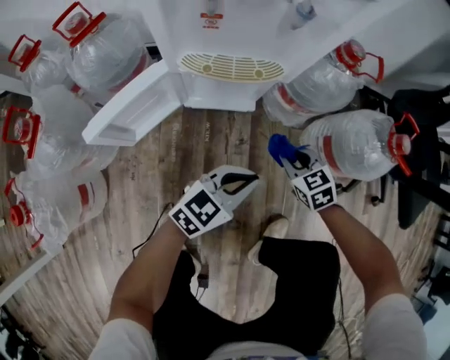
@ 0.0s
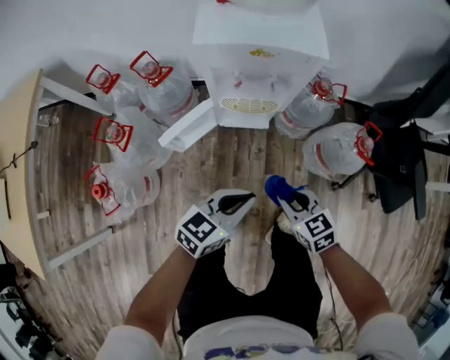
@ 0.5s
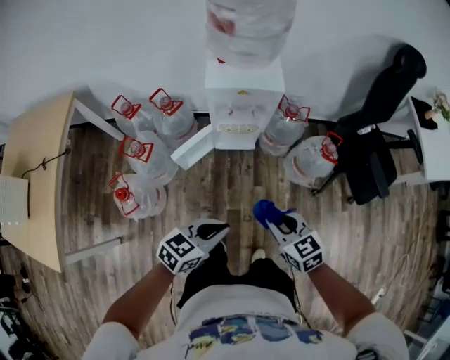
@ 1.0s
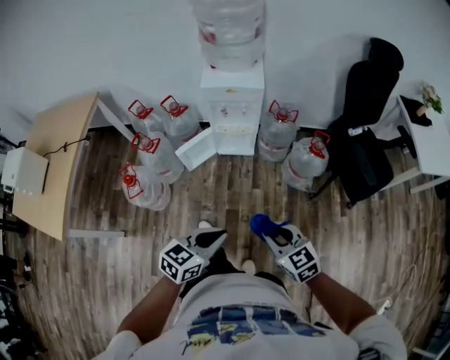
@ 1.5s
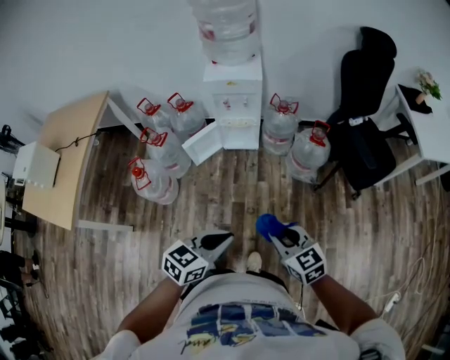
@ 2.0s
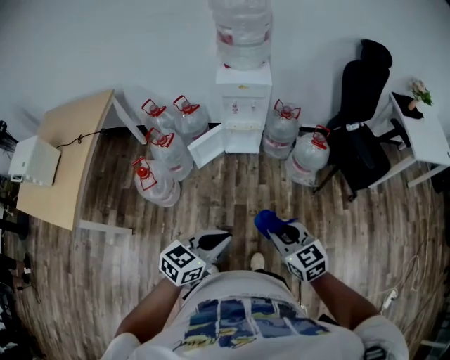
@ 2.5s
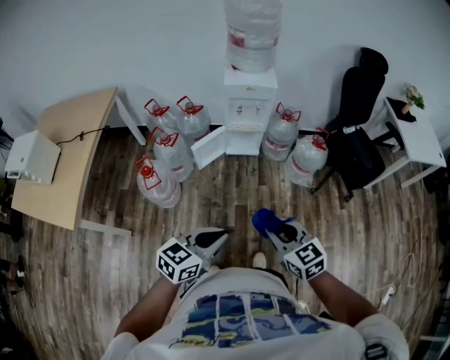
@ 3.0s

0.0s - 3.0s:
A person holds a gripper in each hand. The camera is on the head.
0.0s - 1.5s: The two grippers go some 70 cm upward and backward.
1.5s - 3.0s: The left gripper goes about 20 cm backward and to the left; the right gripper shifts roughly 20 cm backward, to the left and upward.

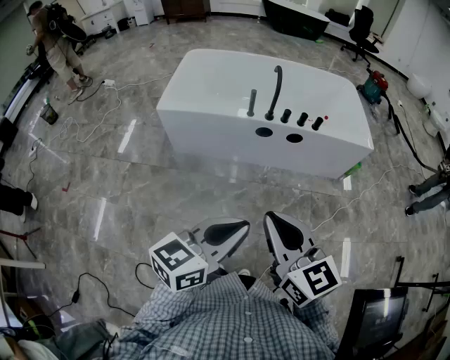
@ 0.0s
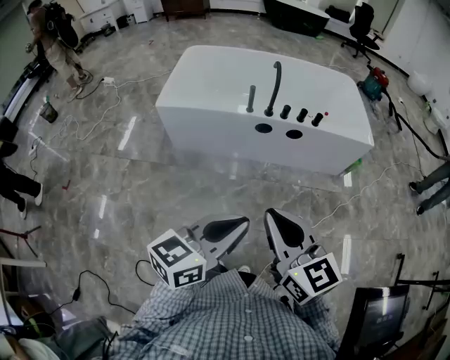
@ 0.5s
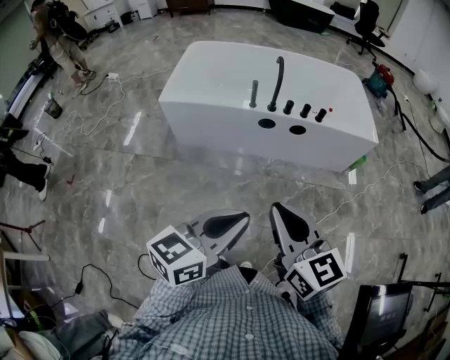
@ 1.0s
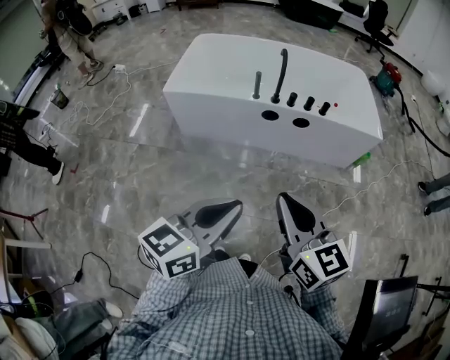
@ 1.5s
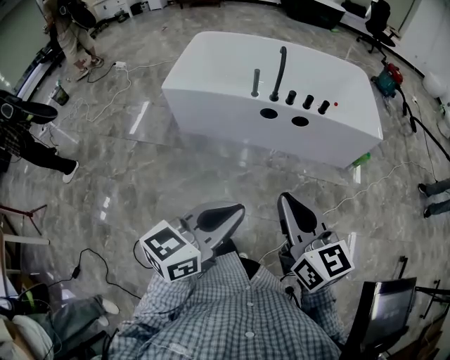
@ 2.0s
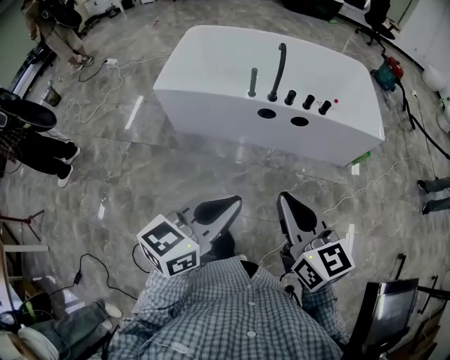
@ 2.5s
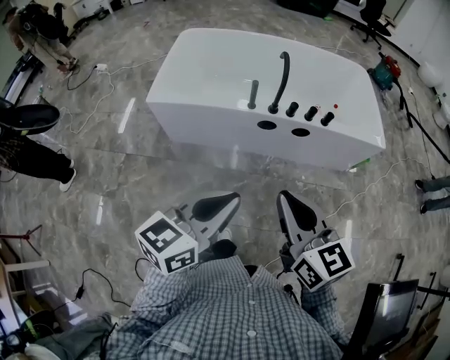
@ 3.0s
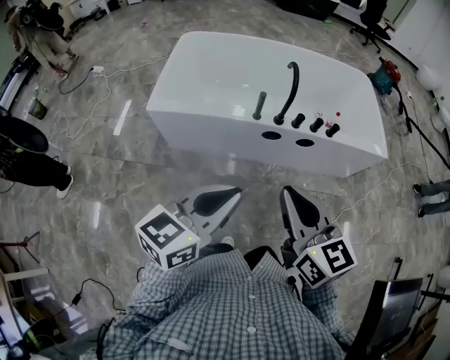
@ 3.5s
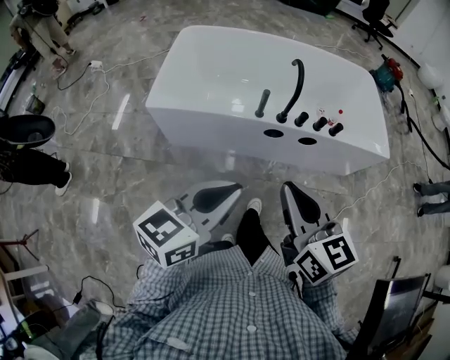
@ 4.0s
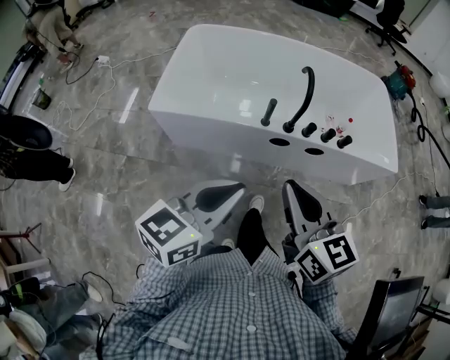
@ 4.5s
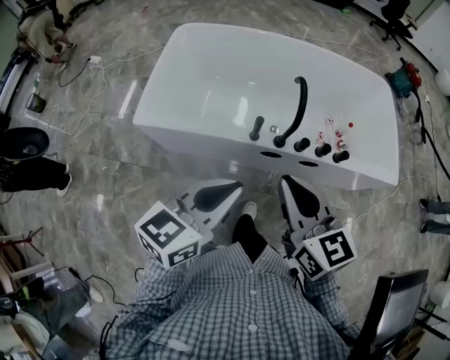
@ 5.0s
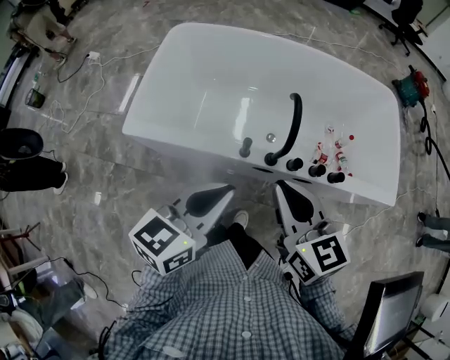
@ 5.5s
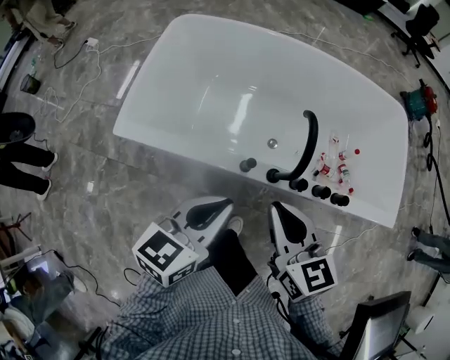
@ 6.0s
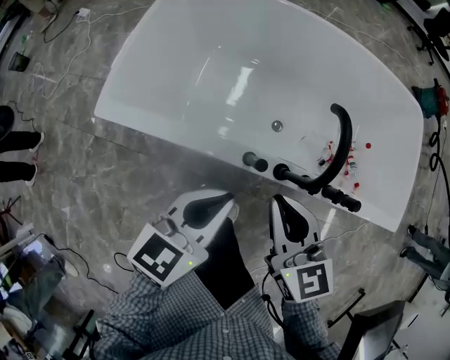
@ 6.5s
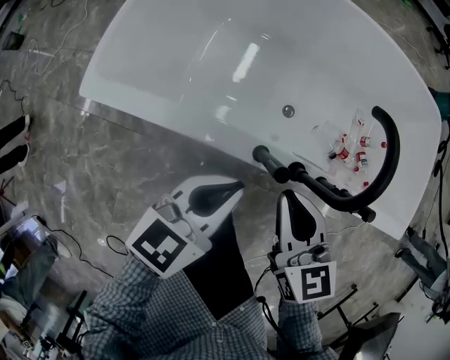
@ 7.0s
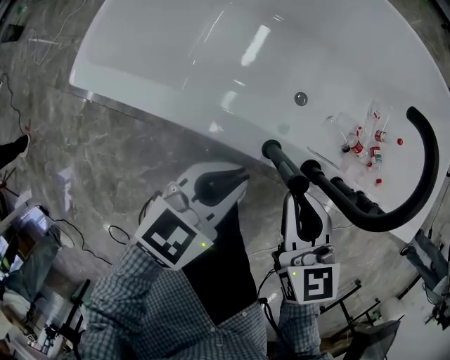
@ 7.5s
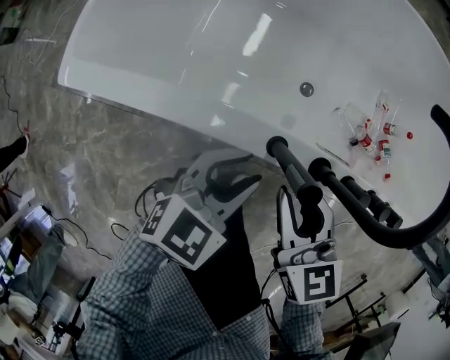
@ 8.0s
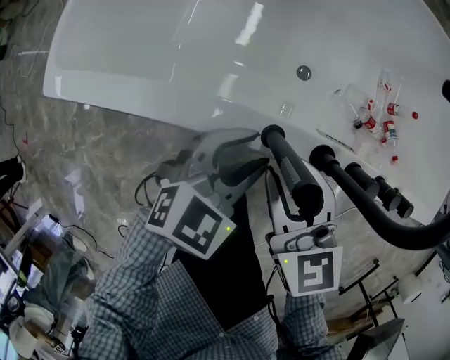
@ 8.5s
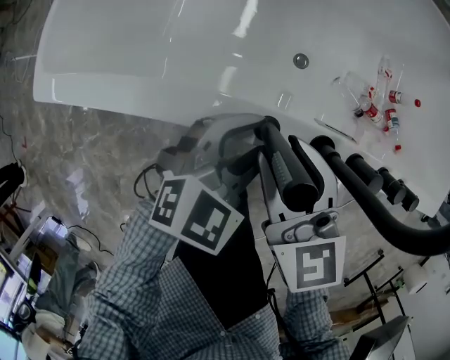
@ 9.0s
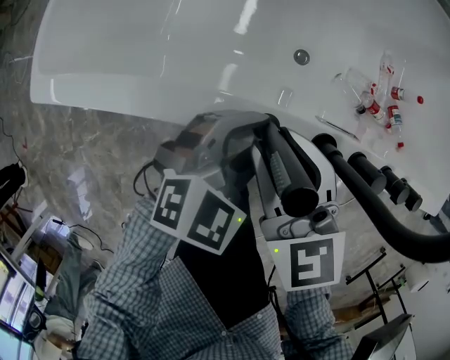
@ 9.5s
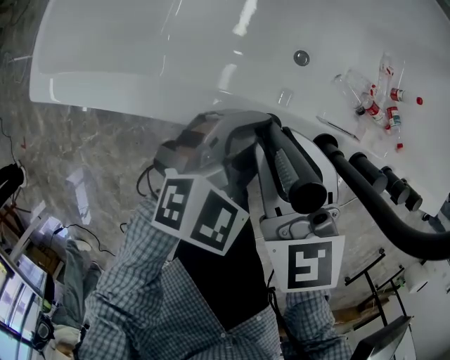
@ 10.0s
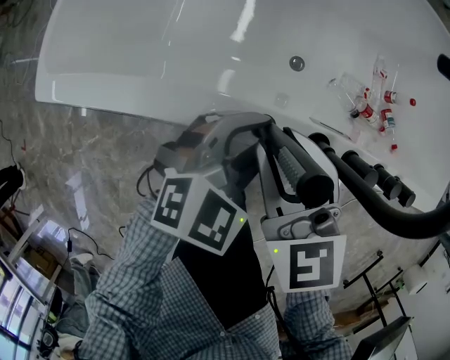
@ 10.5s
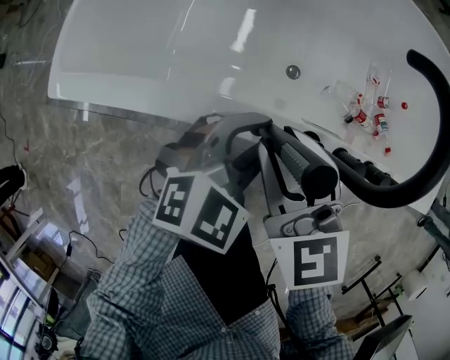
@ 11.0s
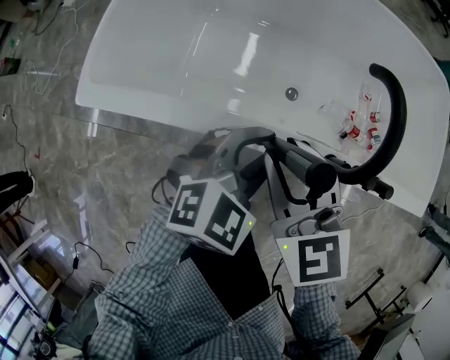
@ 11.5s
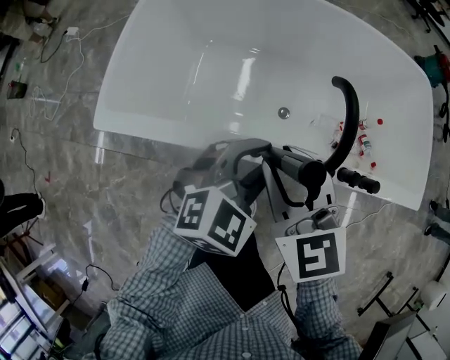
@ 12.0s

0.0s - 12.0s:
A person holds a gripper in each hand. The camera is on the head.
0.0s - 2.0s: The left gripper changes place by about 5 cm. Meanwhile the right gripper travels to the right by approximately 10 cm.
2.0s - 4.0s: The grippers both shift forward and to the left by roughly 35 cm.
4.0s - 6.0s: Both grippers travel together forward, approximately 40 cm.
6.0s - 8.0s: Both grippers move downward, some 30 cm. The left gripper rotates roughly 30 degrees, and opens.
8.0s - 10.0s: The left gripper shifts by some 10 cm. The right gripper changes place by approximately 5 cm.
10.0s - 12.0s: The grippers both shift upward by roughly 25 cm.

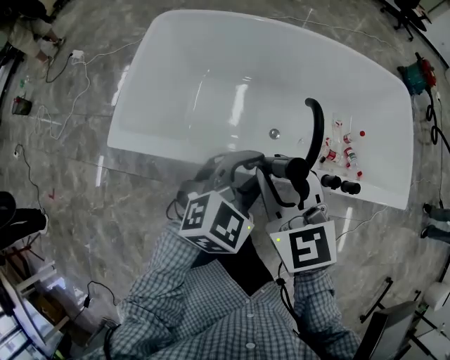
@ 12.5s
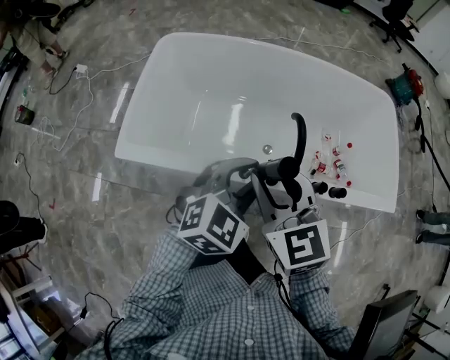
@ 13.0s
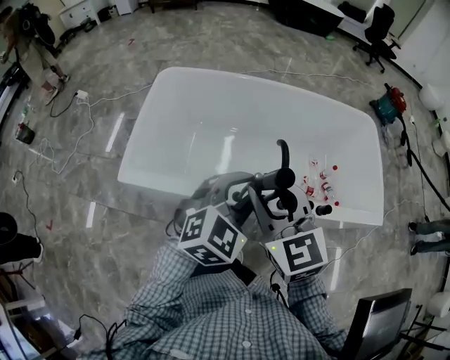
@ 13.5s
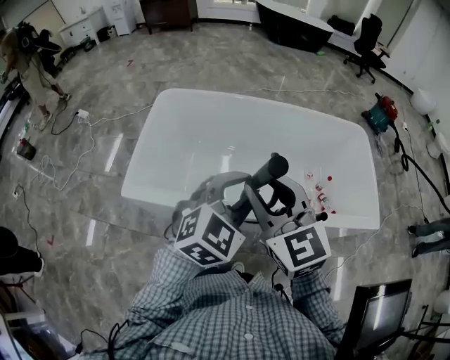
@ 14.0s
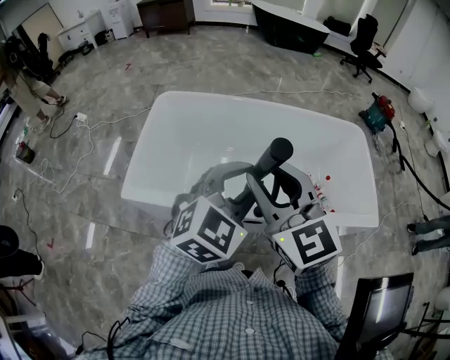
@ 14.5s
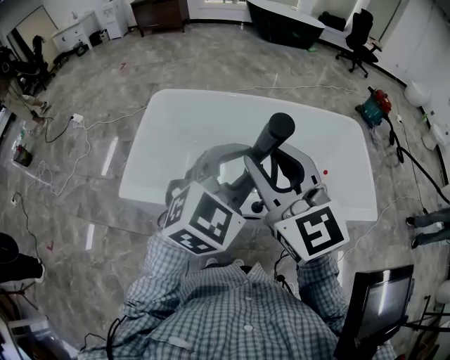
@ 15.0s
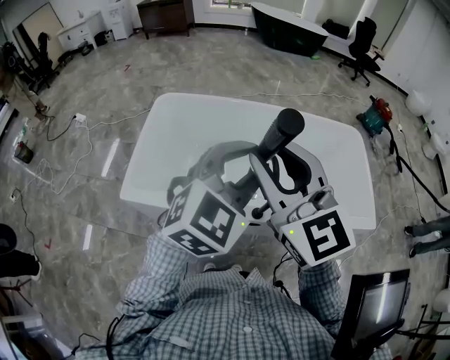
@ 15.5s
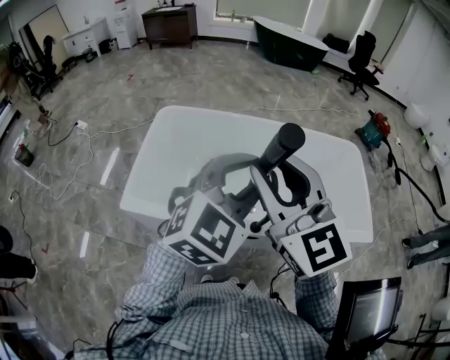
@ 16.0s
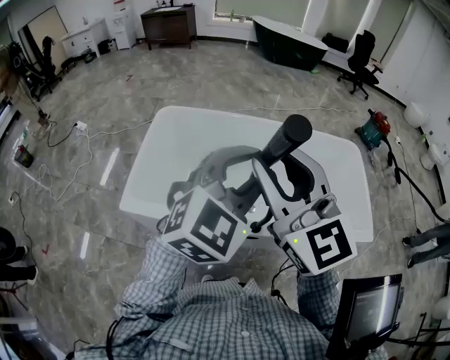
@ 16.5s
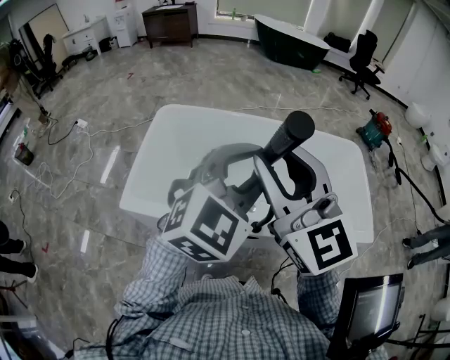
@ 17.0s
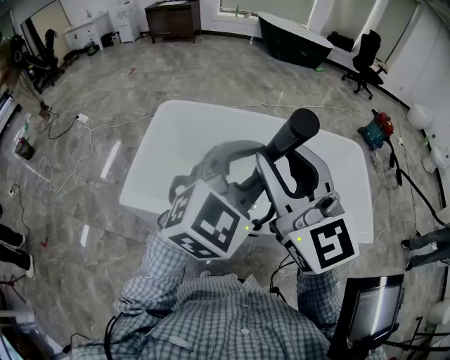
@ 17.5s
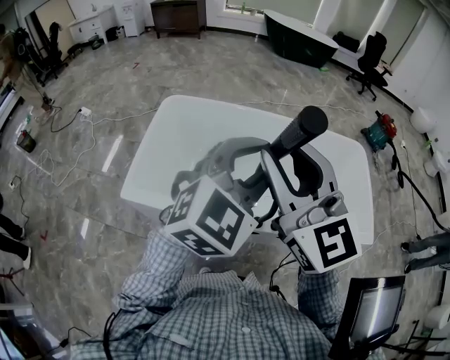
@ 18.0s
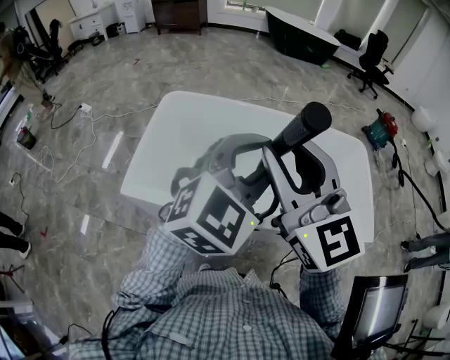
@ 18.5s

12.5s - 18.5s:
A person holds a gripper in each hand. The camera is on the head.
12.5s - 14.5s: The two grippers go approximately 25 cm upward.
14.5s - 16.5s: Both grippers move upward, about 10 cm.
16.5s - 18.5s: Both grippers stay put.

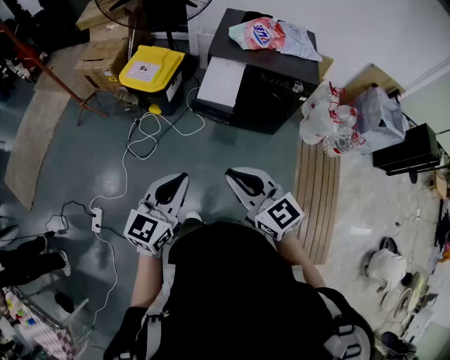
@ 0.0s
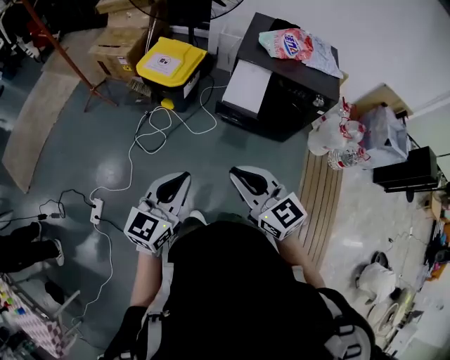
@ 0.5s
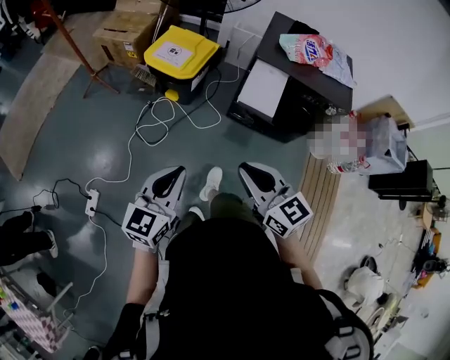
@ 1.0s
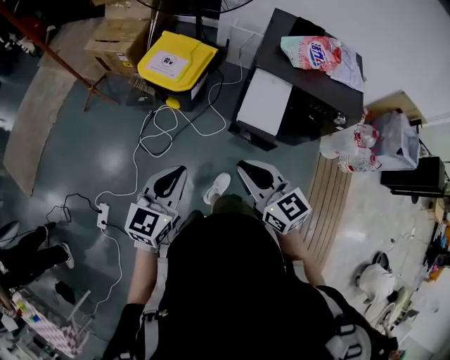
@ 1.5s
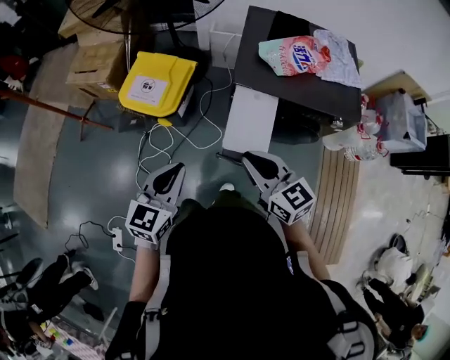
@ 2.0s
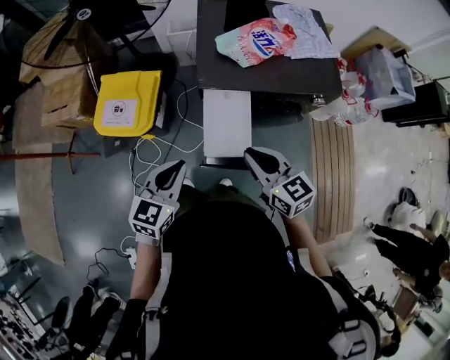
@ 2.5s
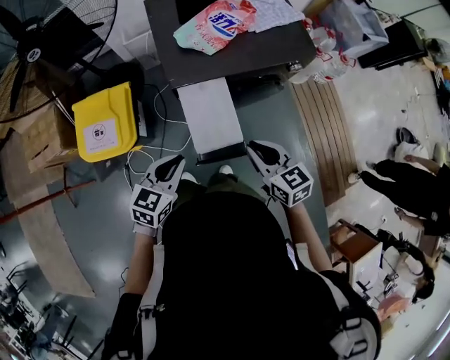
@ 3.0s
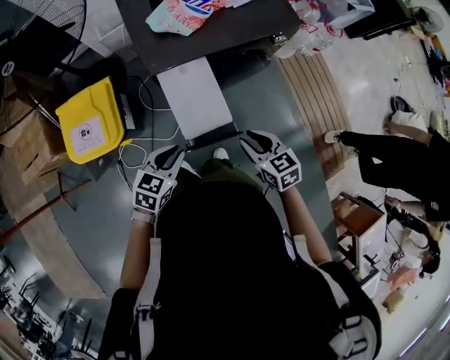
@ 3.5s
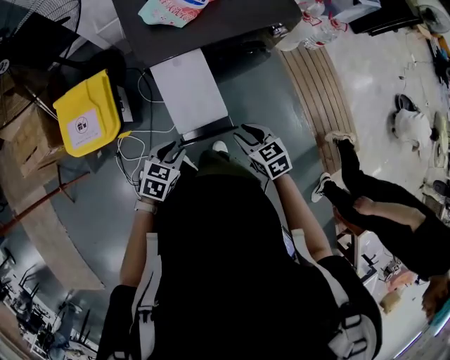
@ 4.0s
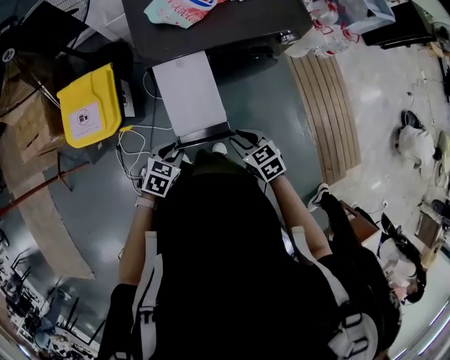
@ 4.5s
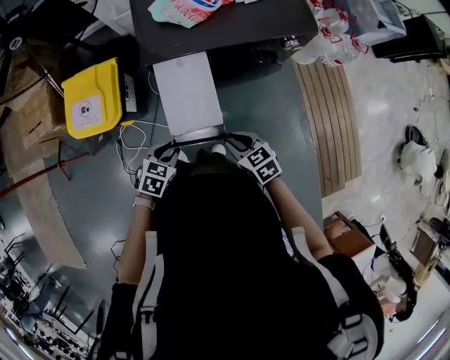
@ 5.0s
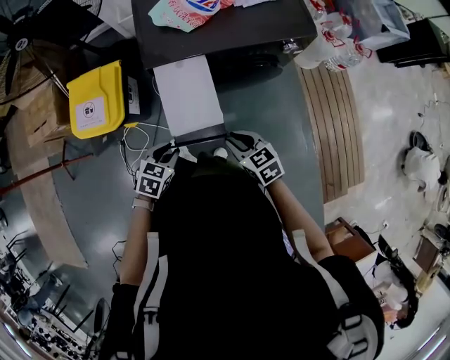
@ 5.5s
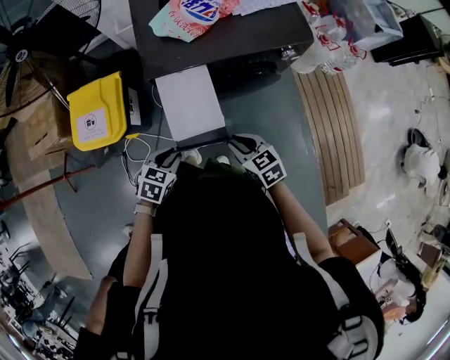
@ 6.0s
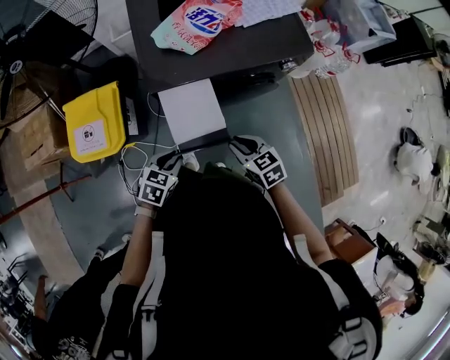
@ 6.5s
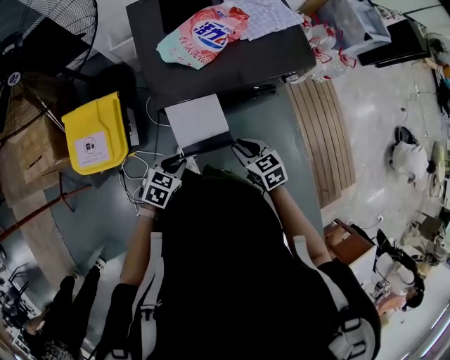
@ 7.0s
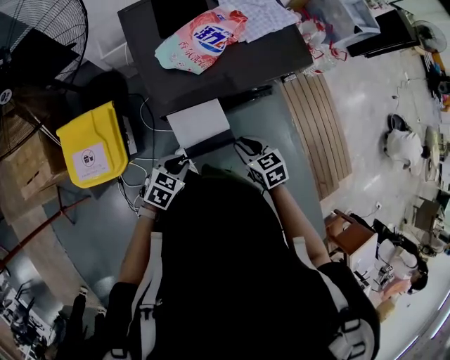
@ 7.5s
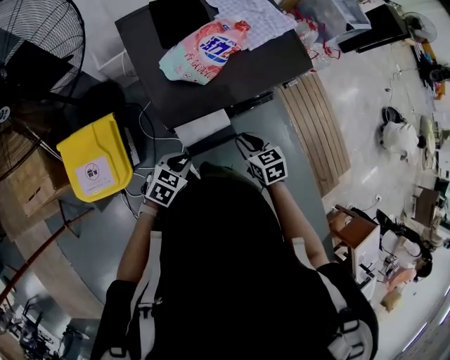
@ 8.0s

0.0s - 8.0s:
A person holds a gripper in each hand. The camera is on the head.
0.0s - 2.0s: Both grippers move forward, some 35 cm.
2.0s - 4.0s: Both grippers move downward, some 25 cm. The left gripper tilts its fingers about 30 degrees downward, and opens, while the right gripper rotates approximately 40 degrees, and opens.
4.0s - 6.0s: The grippers make only small movements.
6.0s - 8.0s: The right gripper ends up some 15 cm from where it was, and swivels roughly 20 degrees. The left gripper shifts by about 15 cm, and swivels some 20 degrees.
